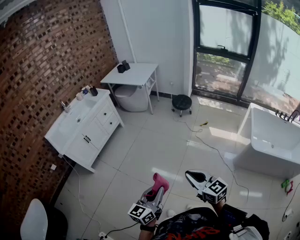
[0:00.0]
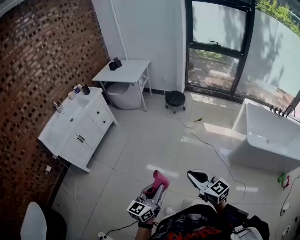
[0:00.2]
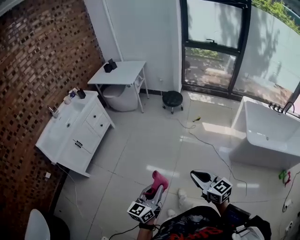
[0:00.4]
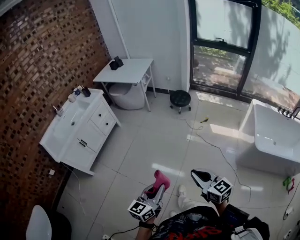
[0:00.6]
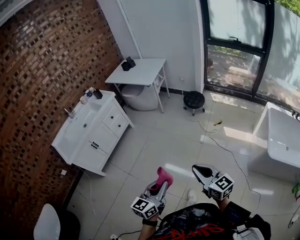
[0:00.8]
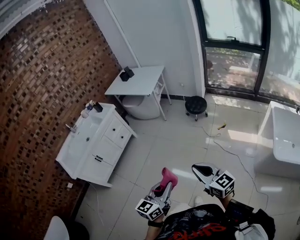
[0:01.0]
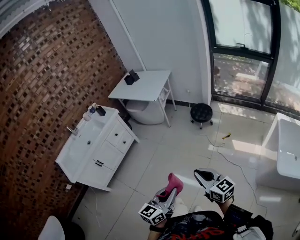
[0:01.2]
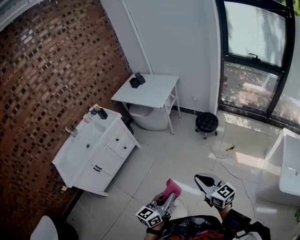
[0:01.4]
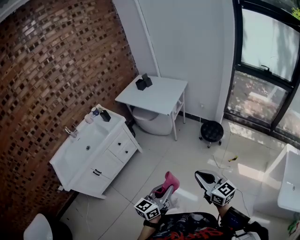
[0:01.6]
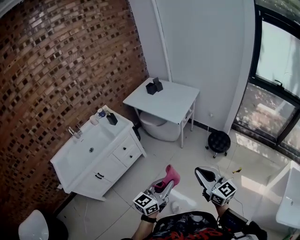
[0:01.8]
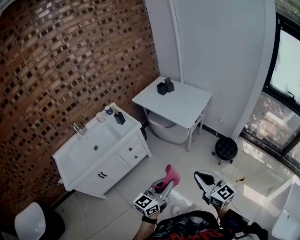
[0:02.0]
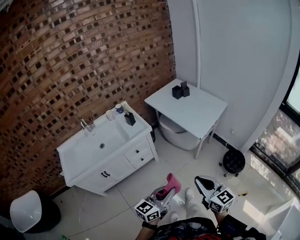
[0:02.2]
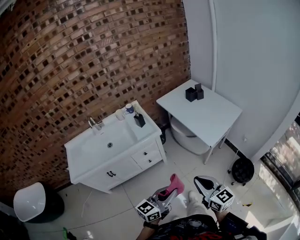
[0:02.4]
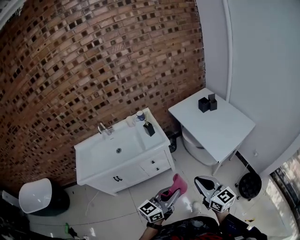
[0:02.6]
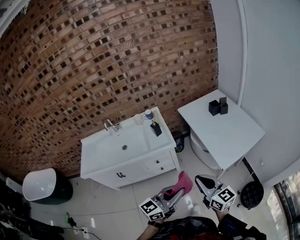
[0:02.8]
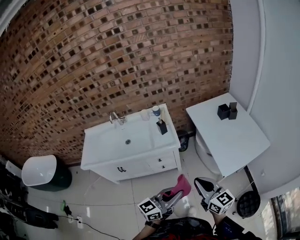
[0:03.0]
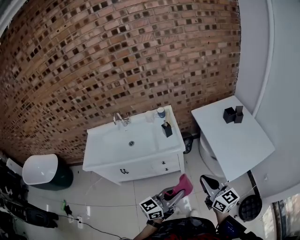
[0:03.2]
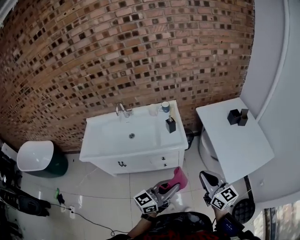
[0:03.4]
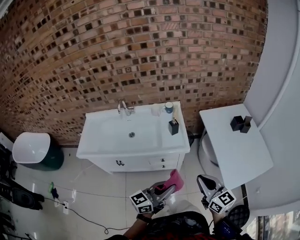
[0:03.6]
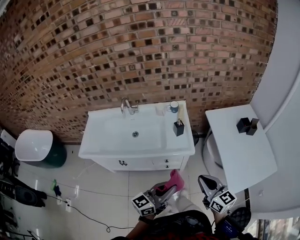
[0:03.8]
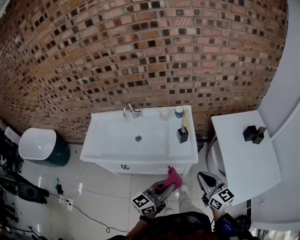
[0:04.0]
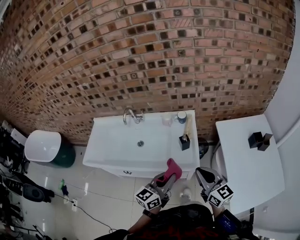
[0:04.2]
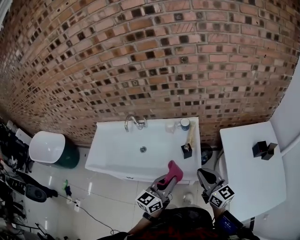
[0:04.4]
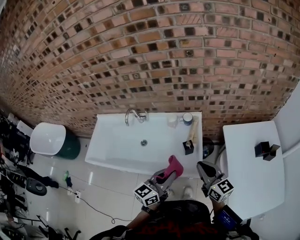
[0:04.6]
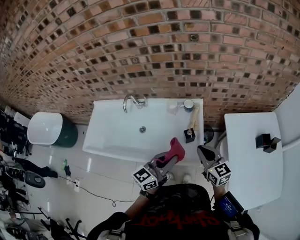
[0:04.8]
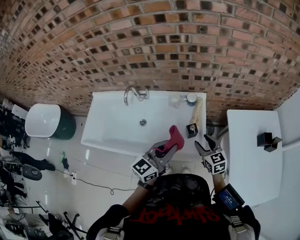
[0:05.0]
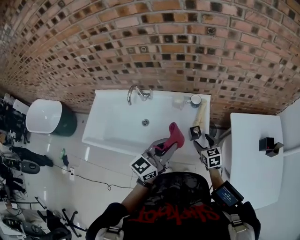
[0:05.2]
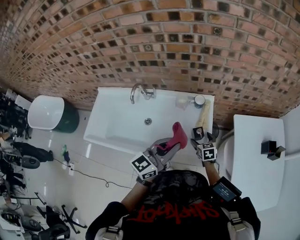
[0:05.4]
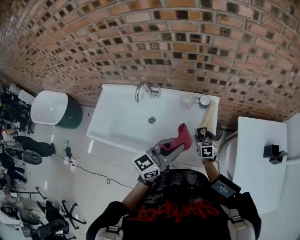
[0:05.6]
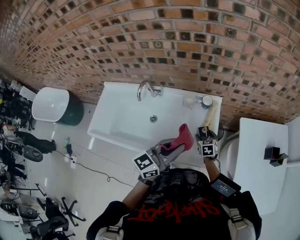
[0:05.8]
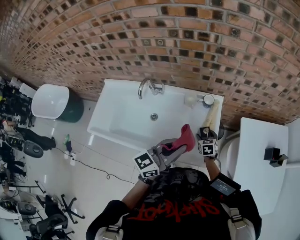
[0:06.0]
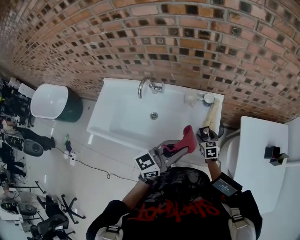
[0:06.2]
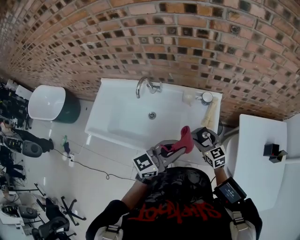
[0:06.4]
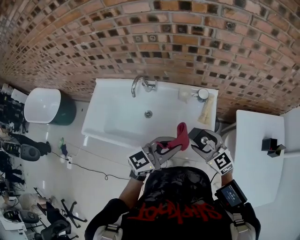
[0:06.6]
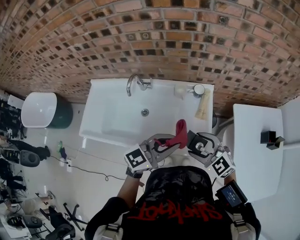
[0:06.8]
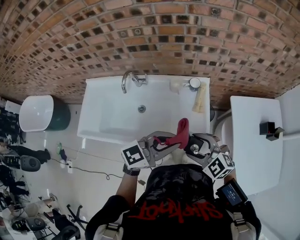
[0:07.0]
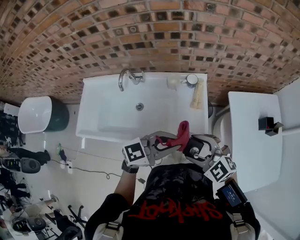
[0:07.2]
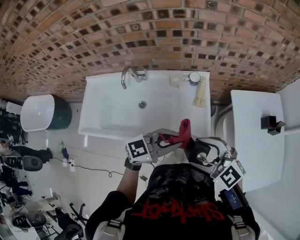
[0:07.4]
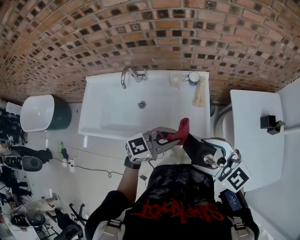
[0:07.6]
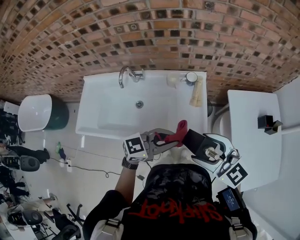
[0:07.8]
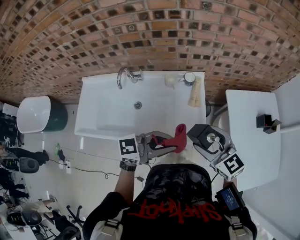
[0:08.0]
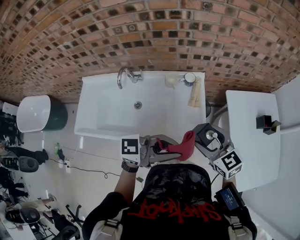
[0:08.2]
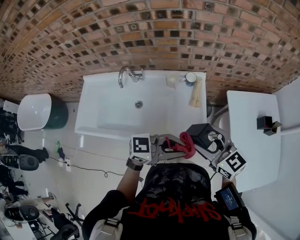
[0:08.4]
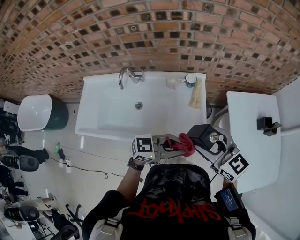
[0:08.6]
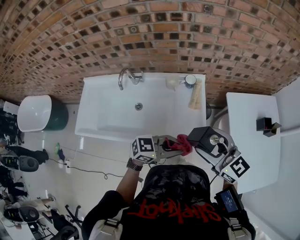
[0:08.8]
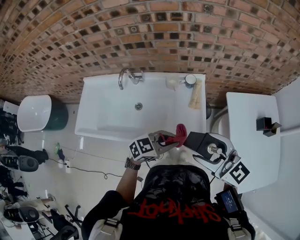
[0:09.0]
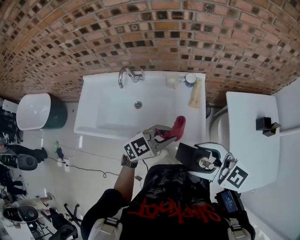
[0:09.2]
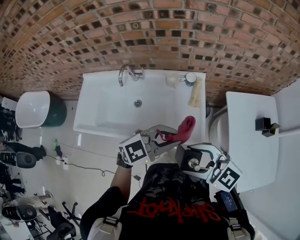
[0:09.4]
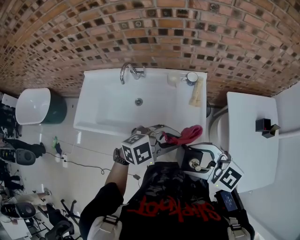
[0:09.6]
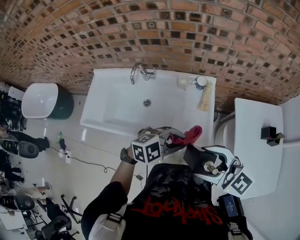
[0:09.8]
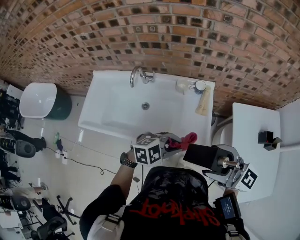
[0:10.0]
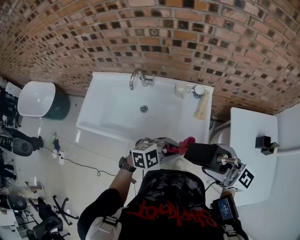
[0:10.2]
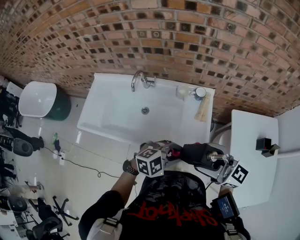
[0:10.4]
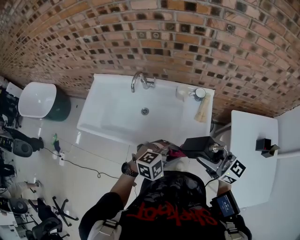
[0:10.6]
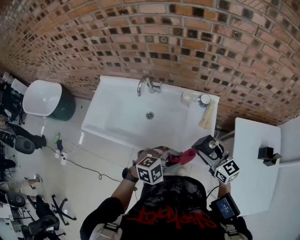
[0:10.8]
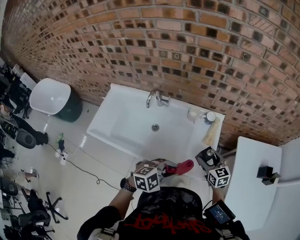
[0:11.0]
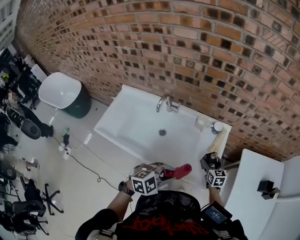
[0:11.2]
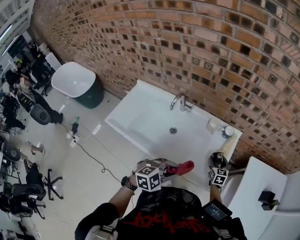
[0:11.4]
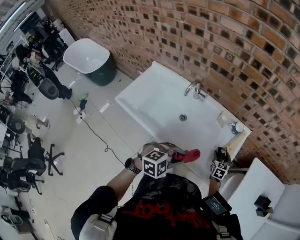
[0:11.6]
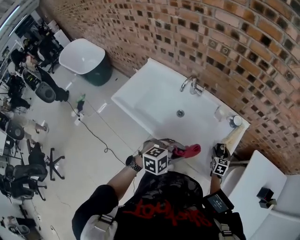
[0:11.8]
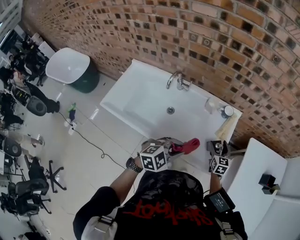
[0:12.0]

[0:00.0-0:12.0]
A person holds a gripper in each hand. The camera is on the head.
0:00.0 to 0:01.6: Both grippers are carried forward, about 50 cm.
0:01.6 to 0:03.0: The two grippers travel together, about 50 cm. The right gripper turns by some 40 degrees. The left gripper rotates roughly 30 degrees.
0:03.0 to 0:04.4: The grippers both shift forward by about 40 cm. The left gripper changes its angle by some 30 degrees.
0:04.4 to 0:06.0: The left gripper is displaced forward and to the left by about 15 cm. The right gripper is displaced downward and forward by some 40 cm, angles its fingers downward, by approximately 50 degrees, and opens up.
0:06.0 to 0:07.6: The left gripper moves some 5 cm, and turns by roughly 30 degrees. The right gripper travels upward by some 40 cm, and tips its fingers upward by roughly 30 degrees.
0:07.6 to 0:09.0: The right gripper moves roughly 5 cm downward and comes back, and swivels approximately 30 degrees. The left gripper travels downward by some 5 cm.
0:09.0 to 0:10.4: The left gripper goes upward and returns, approximately 10 cm each way, and rotates about 30 degrees.
0:10.4 to 0:12.0: The right gripper heads downward, covering roughly 30 cm, and angles its fingers downward, by about 30 degrees. The left gripper shifts by approximately 10 cm, and turns by roughly 30 degrees.

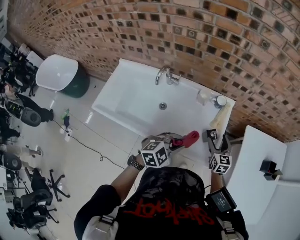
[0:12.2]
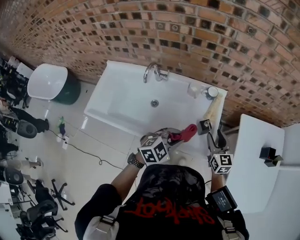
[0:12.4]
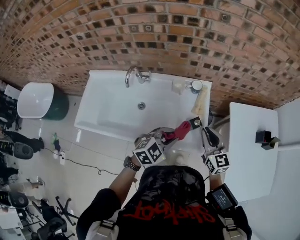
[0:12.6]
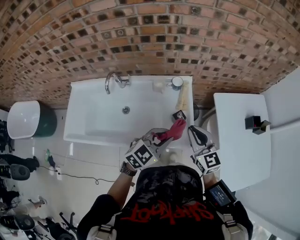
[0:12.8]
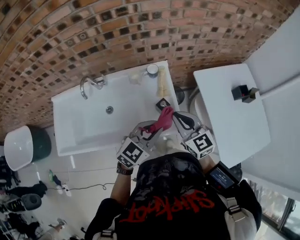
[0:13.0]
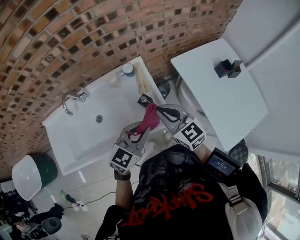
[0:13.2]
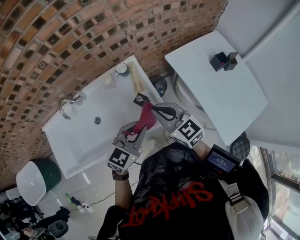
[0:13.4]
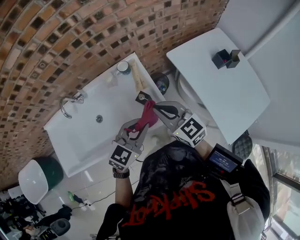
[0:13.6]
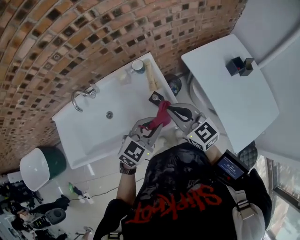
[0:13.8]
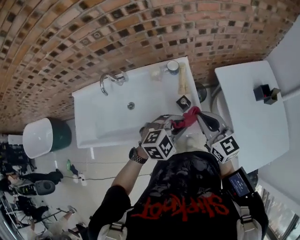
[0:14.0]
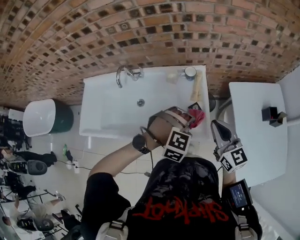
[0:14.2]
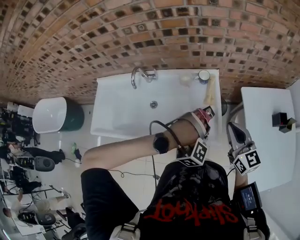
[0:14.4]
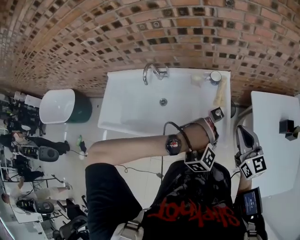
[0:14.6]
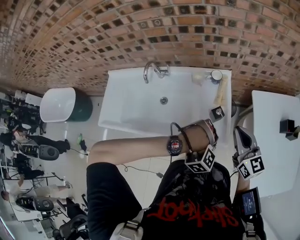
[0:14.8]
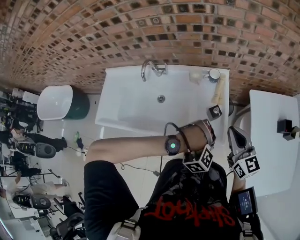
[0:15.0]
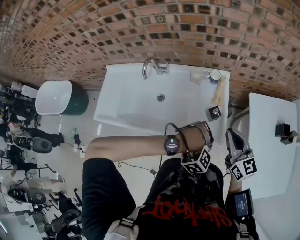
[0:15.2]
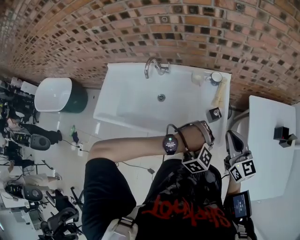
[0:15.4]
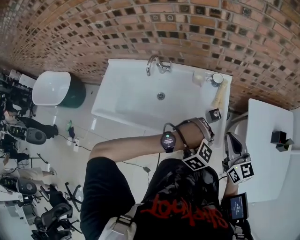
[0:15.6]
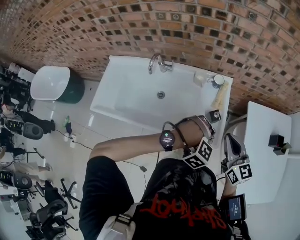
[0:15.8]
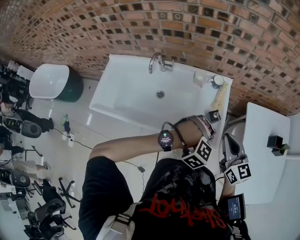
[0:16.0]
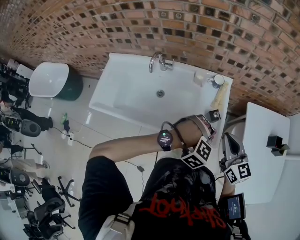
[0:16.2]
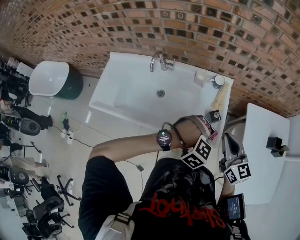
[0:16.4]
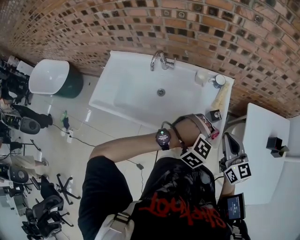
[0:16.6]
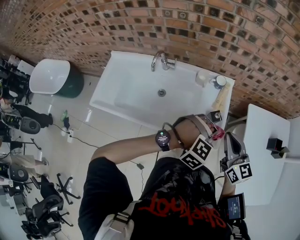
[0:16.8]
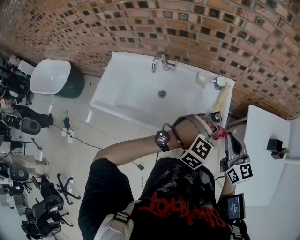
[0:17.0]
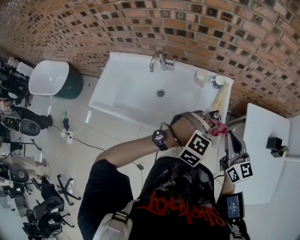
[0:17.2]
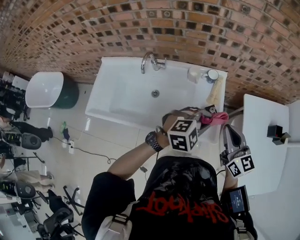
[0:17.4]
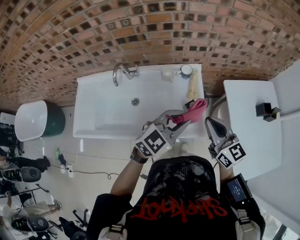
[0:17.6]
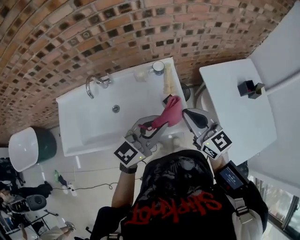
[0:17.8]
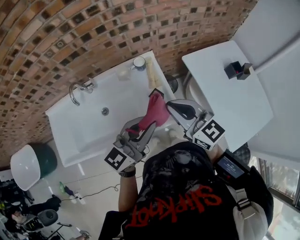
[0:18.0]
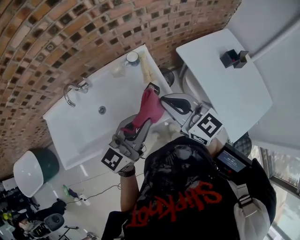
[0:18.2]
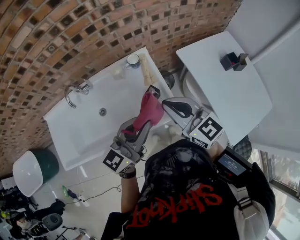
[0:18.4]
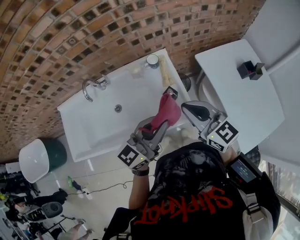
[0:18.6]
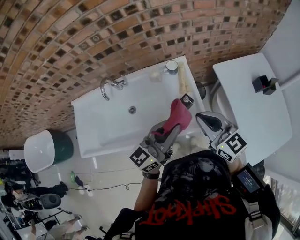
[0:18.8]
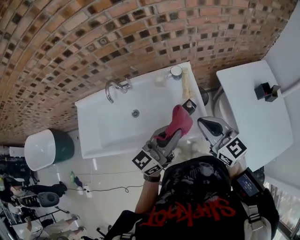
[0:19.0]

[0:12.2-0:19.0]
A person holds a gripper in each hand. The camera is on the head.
0:12.2 to 0:13.6: The right gripper moves upward and backward, approximately 15 cm, and closes its fingers, while the left gripper goes about 10 cm to the right, and swivels roughly 20 degrees.
0:13.6 to 0:15.0: The left gripper is displaced downward by some 10 cm, and points its fingers approximately 50 degrees further downward.
0:15.0 to 0:16.2: The left gripper swivels some 30 degrees.
0:16.2 to 0:17.6: The left gripper shifts about 10 cm upward, and tips its fingers upward by some 50 degrees.
0:17.6 to 0:19.0: The left gripper rotates roughly 40 degrees.

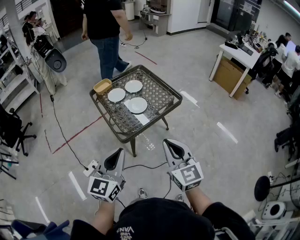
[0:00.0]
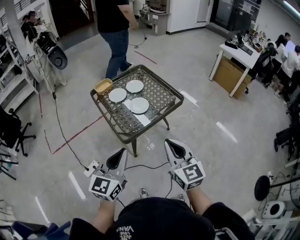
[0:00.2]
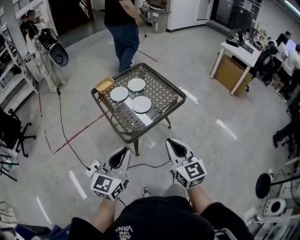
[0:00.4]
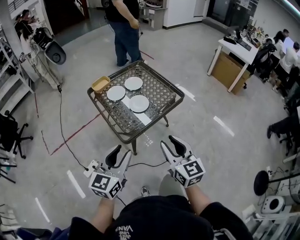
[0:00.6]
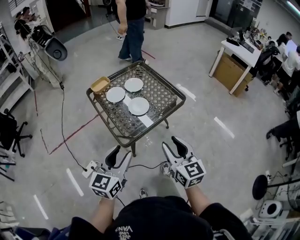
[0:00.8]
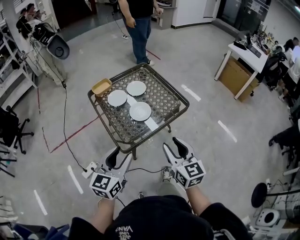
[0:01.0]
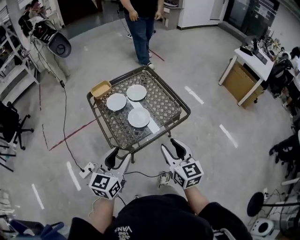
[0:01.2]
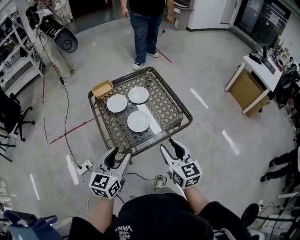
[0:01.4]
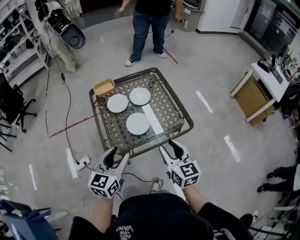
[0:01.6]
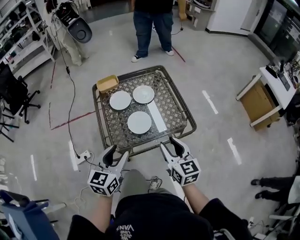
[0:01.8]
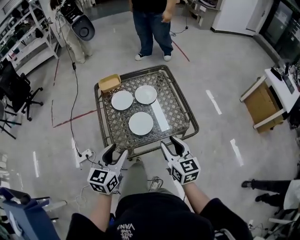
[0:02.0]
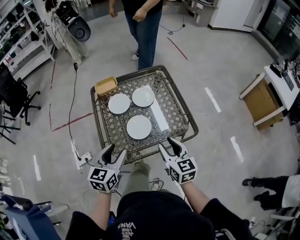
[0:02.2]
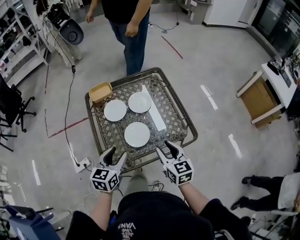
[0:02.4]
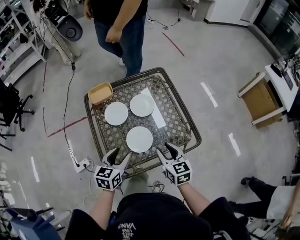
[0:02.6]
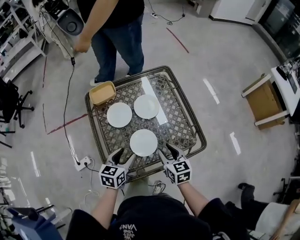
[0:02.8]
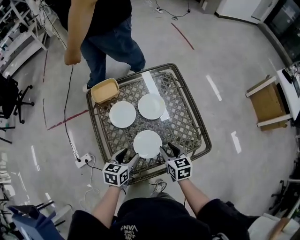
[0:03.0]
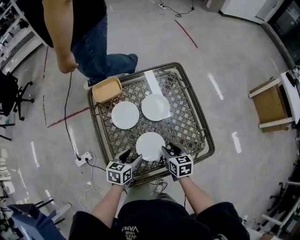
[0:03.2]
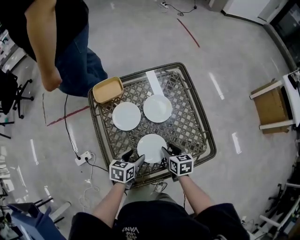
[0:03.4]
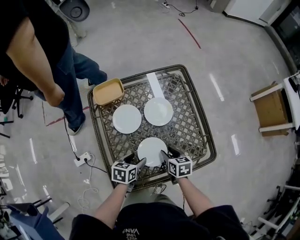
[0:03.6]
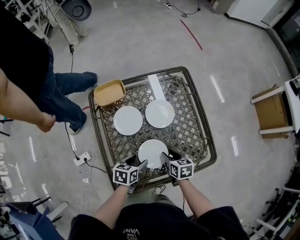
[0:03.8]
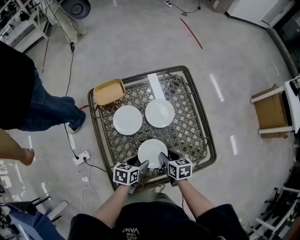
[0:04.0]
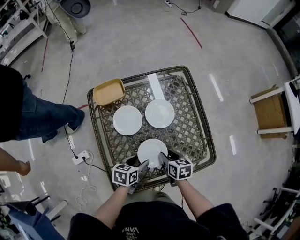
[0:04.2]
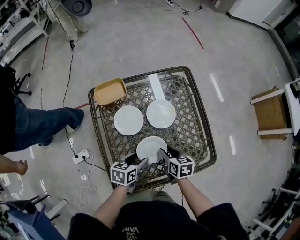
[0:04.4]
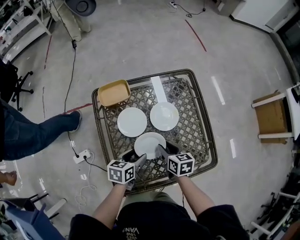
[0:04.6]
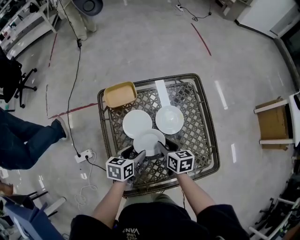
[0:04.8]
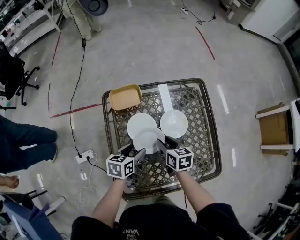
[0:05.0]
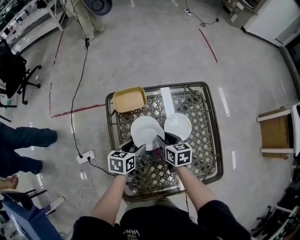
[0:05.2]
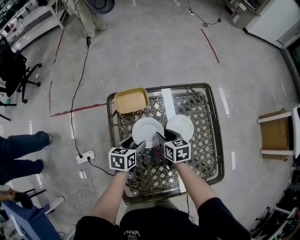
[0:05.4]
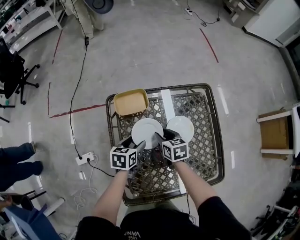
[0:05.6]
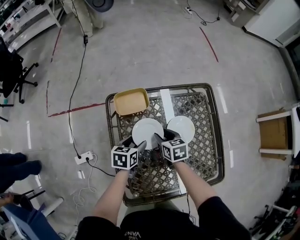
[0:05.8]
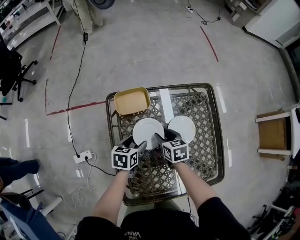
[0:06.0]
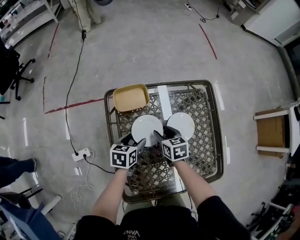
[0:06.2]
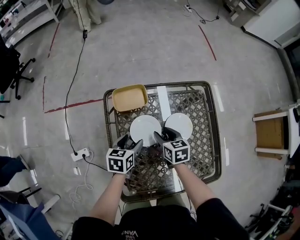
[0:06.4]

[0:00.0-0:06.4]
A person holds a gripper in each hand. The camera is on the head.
0:00.0 to 0:01.6: The grippers both shift forward by about 25 cm. The right gripper opens. The left gripper swivels approximately 20 degrees, and opens up.
0:01.6 to 0:03.2: The two grippers go roughly 30 cm downward and forward. The right gripper changes its angle by roughly 30 degrees. Meanwhile the left gripper rotates about 40 degrees.
0:03.2 to 0:04.8: The left gripper goes some 5 cm forward. Meanwhile the right gripper moves to the left and forward, about 15 cm.
0:04.8 to 0:06.4: Both grippers travel together forward and to the left, some 10 cm.
